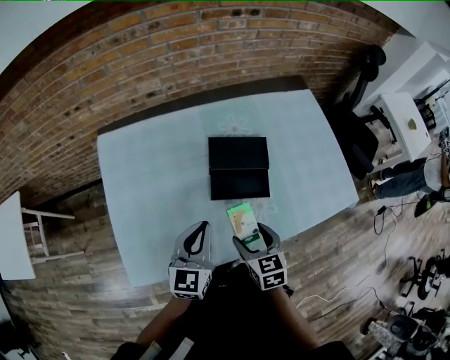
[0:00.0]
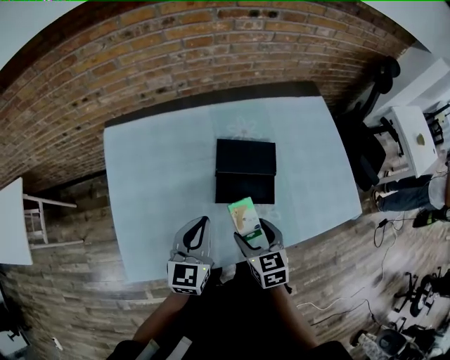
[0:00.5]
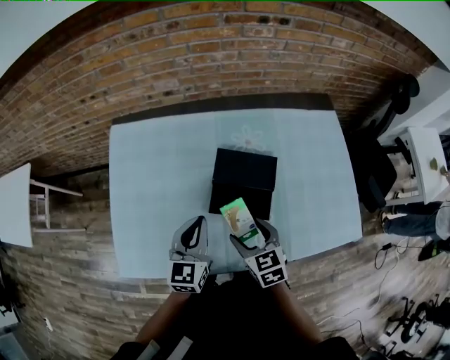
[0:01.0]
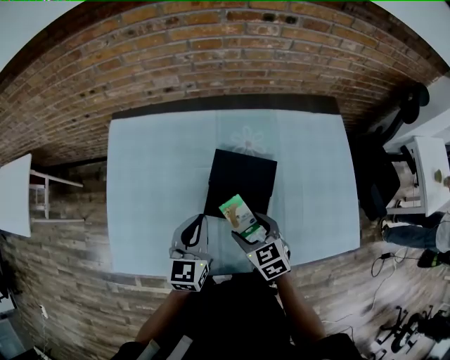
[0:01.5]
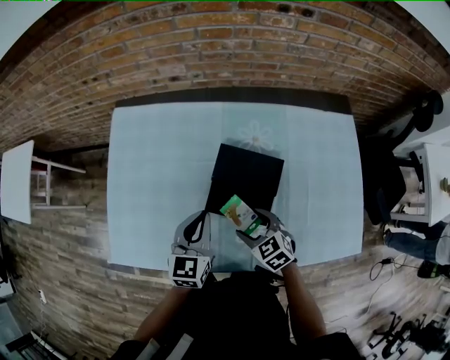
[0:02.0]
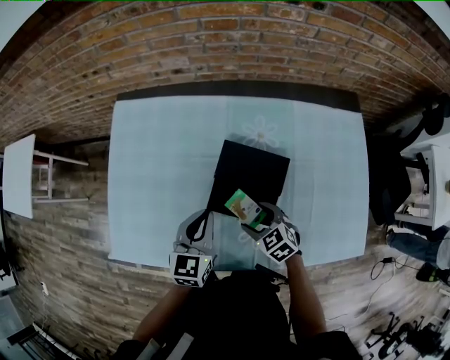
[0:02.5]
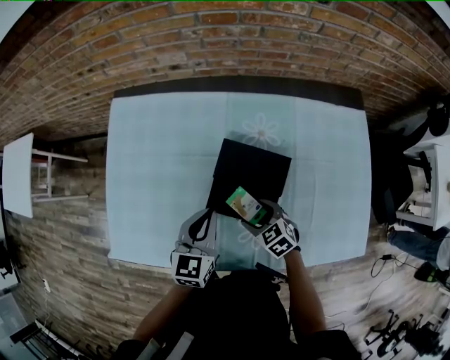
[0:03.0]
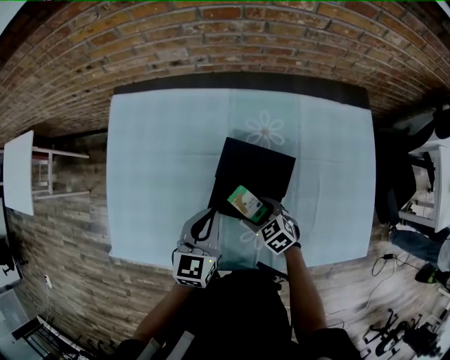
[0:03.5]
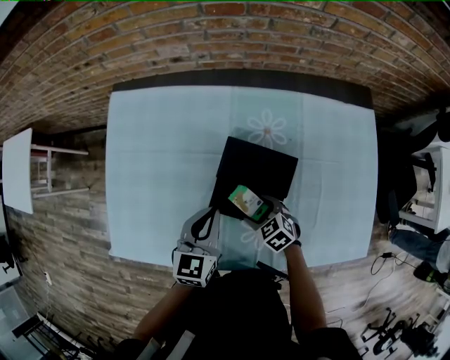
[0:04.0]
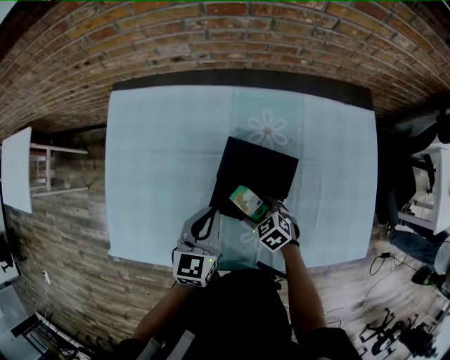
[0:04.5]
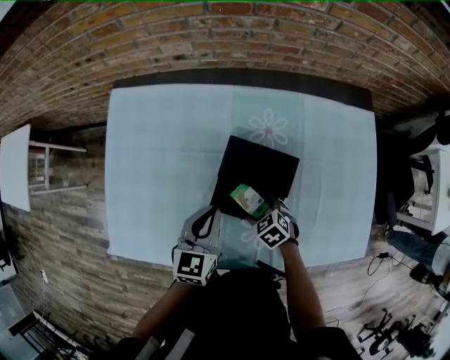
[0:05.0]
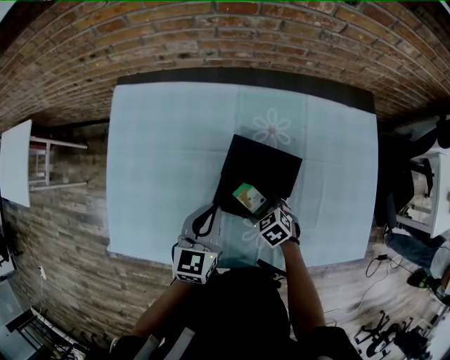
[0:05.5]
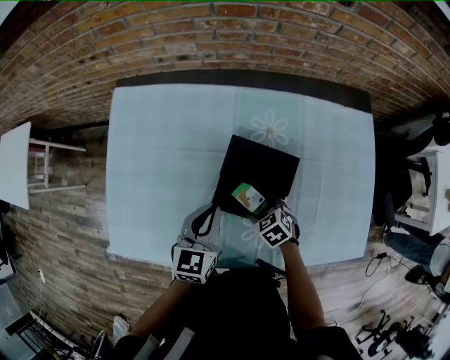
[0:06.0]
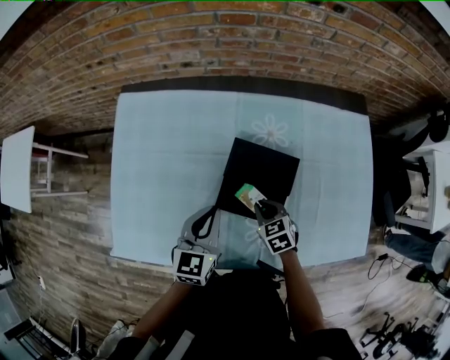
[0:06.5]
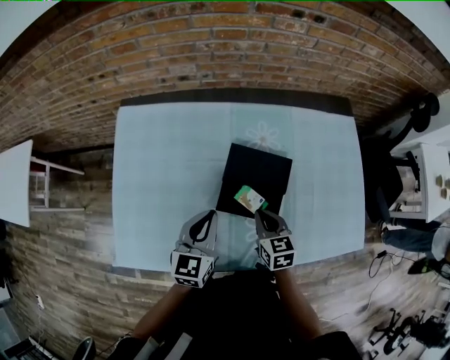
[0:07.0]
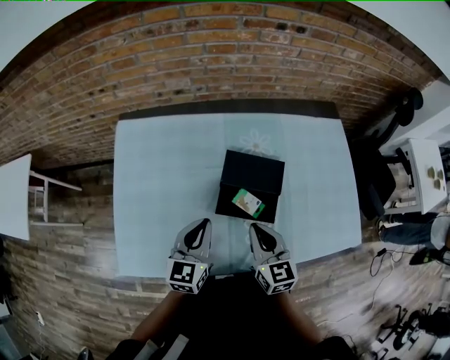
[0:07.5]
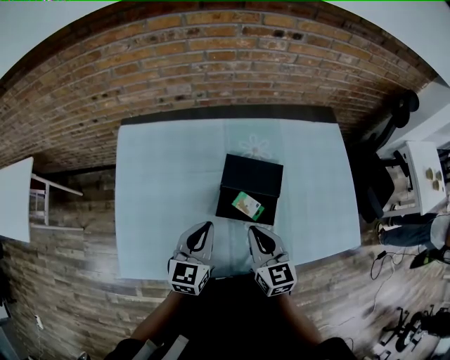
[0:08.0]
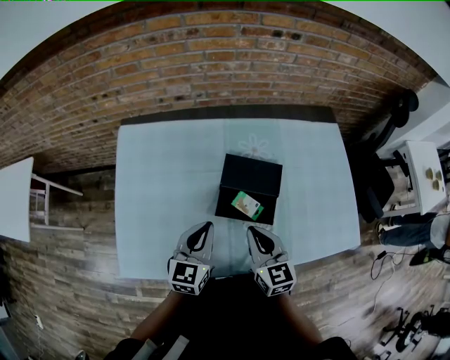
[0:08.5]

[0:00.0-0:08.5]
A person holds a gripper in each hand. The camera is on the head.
0:00.0 to 0:02.0: The left gripper ends up about 10 cm from where it was. Meanwhile the right gripper ends up some 15 cm from where it was, and rotates roughly 40 degrees.
0:02.0 to 0:04.0: The right gripper shifts about 10 cm downward.
0:04.0 to 0:06.5: The right gripper closes up.
0:06.5 to 0:08.5: The right gripper is displaced upward by approximately 20 cm, and tips its fingers upward by some 30 degrees. The left gripper moves roughly 5 cm.

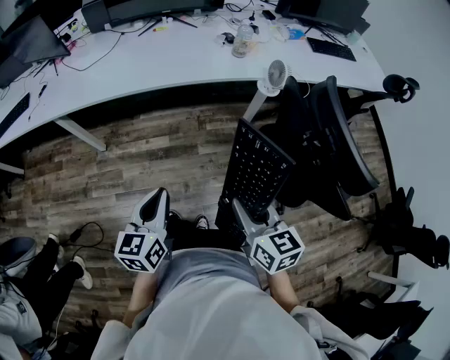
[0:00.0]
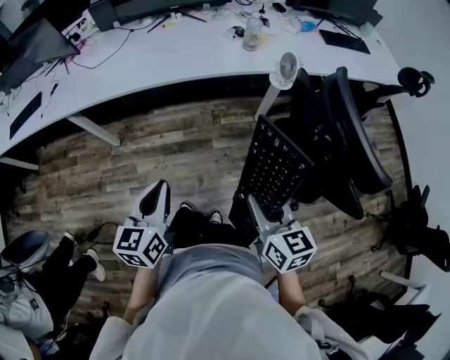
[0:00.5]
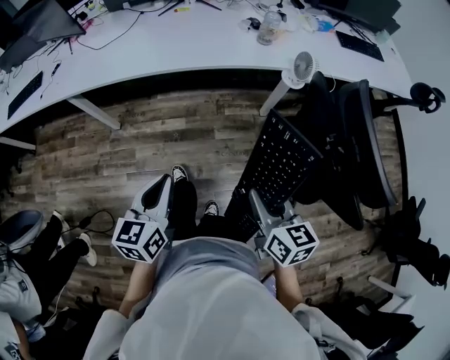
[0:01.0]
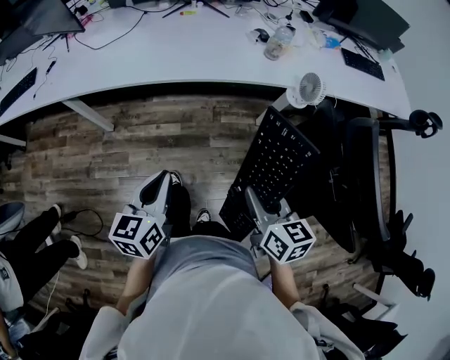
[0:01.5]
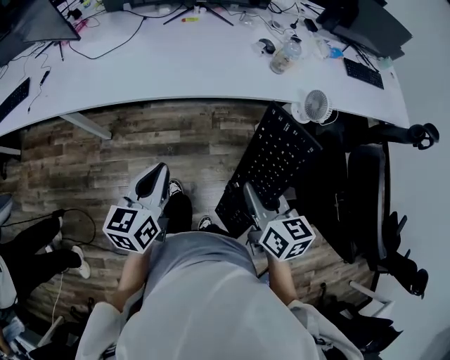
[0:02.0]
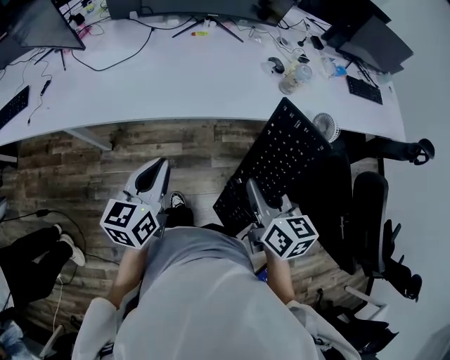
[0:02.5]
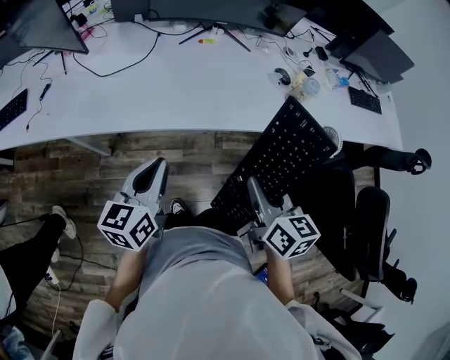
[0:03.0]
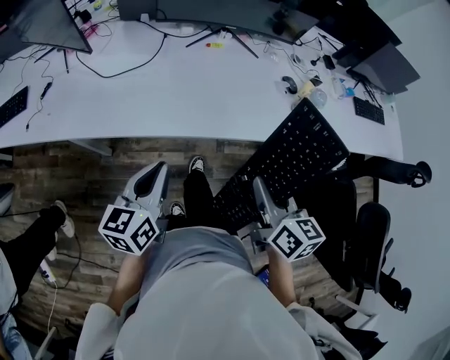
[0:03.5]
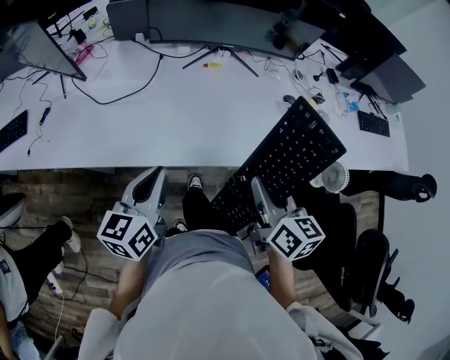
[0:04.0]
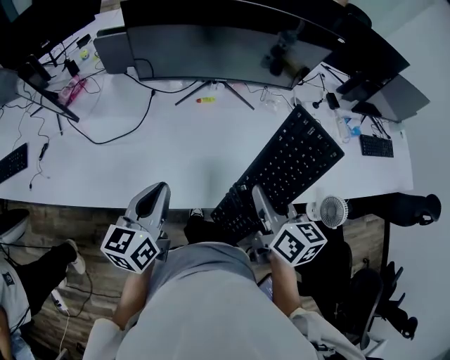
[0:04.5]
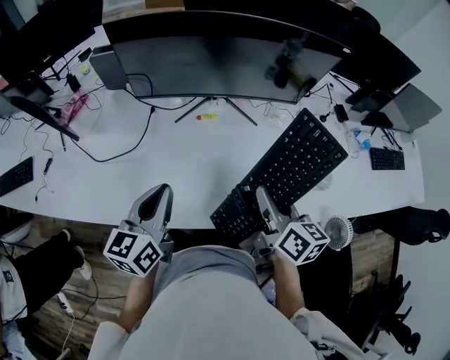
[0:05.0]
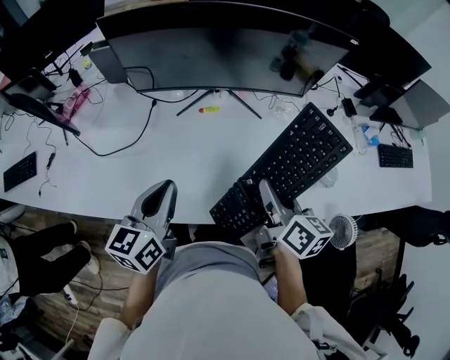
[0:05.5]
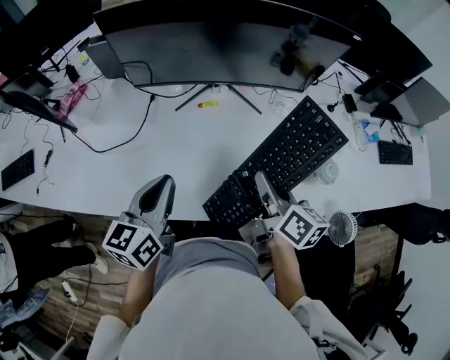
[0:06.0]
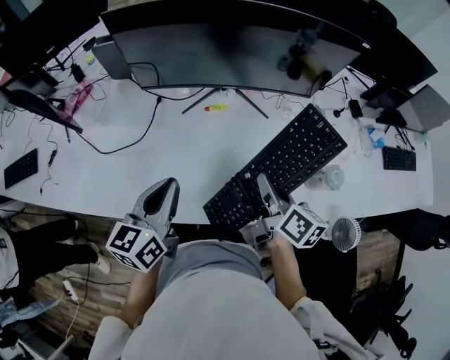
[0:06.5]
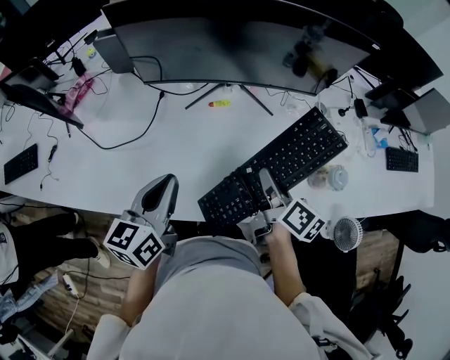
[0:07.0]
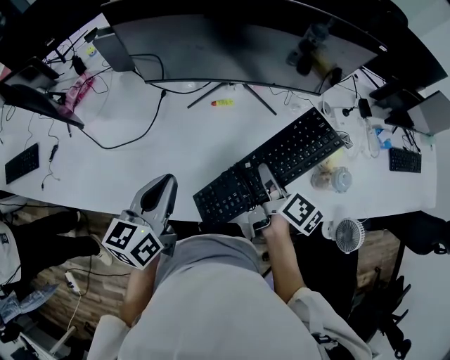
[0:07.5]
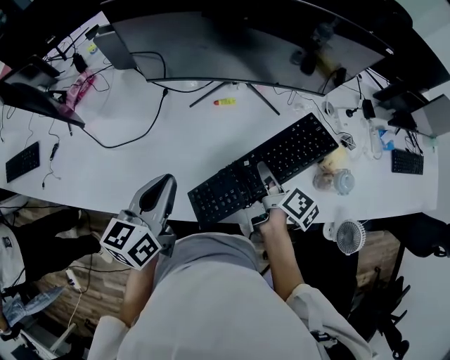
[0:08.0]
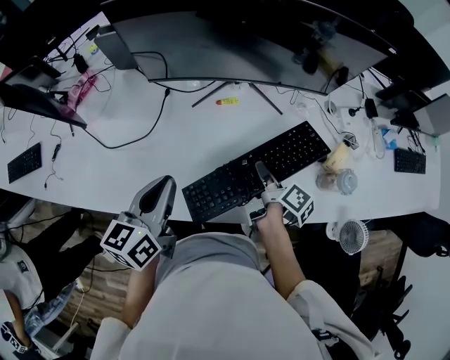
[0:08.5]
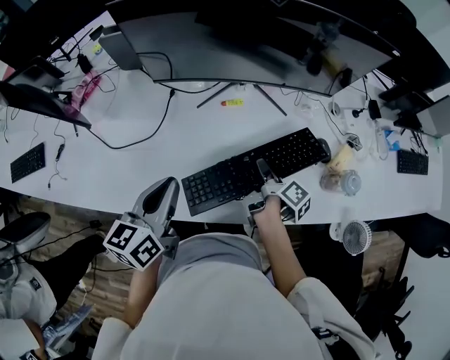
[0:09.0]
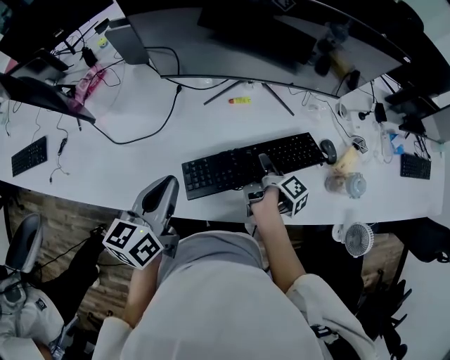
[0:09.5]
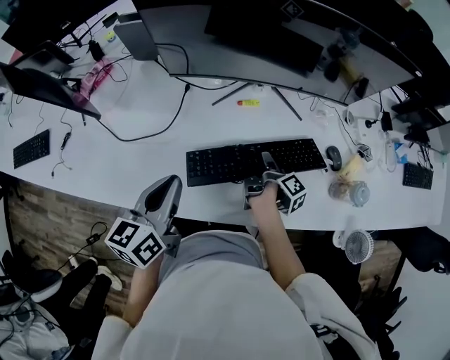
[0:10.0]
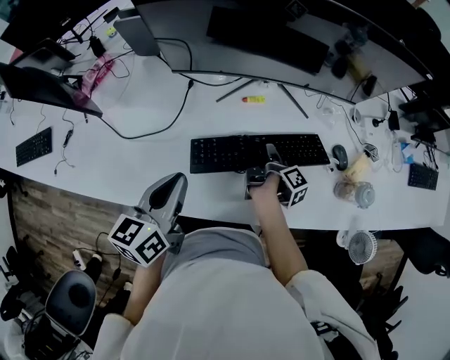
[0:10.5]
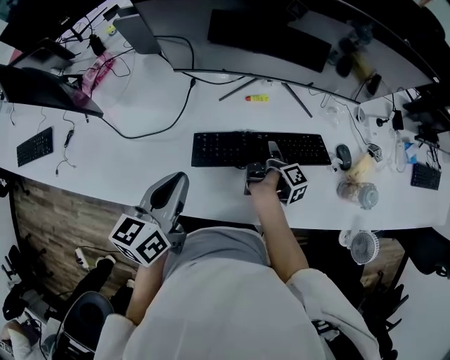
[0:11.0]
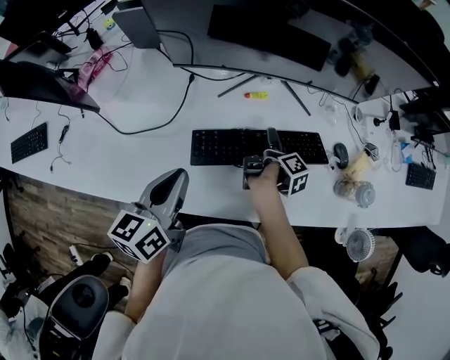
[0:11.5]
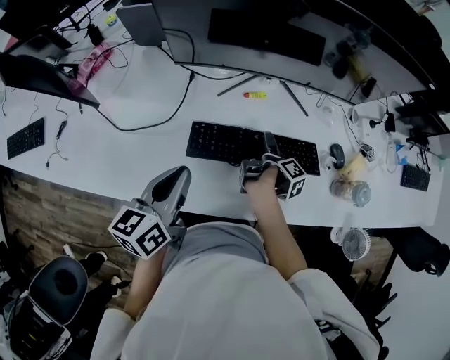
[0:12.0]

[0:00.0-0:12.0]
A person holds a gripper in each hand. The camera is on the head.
0:00.0 to 0:02.0: The right gripper is displaced forward by about 20 cm, while the left gripper goes roughly 25 cm forward and to the left.
0:02.0 to 0:04.0: The left gripper shifts roughly 25 cm forward and to the left, while the right gripper is displaced forward by approximately 30 cm.
0:04.0 to 0:06.0: The right gripper shifts roughly 20 cm forward; the left gripper heads forward and to the right, covering some 20 cm.
0:06.0 to 0:08.0: The right gripper is displaced downward and forward by some 10 cm, and swivels roughly 30 degrees.
0:08.0 to 0:10.0: The right gripper moves downward, some 10 cm, and swivels roughly 30 degrees.
0:10.0 to 0:12.0: The right gripper opens.

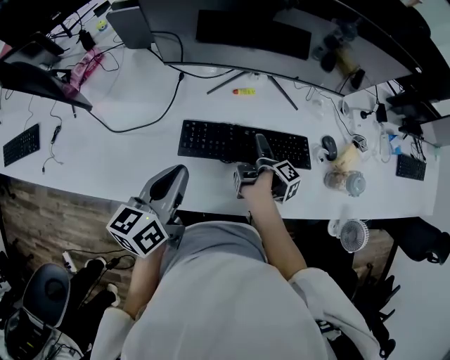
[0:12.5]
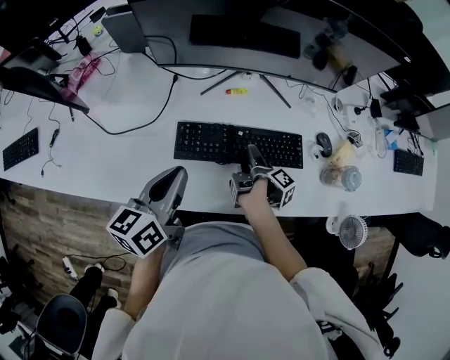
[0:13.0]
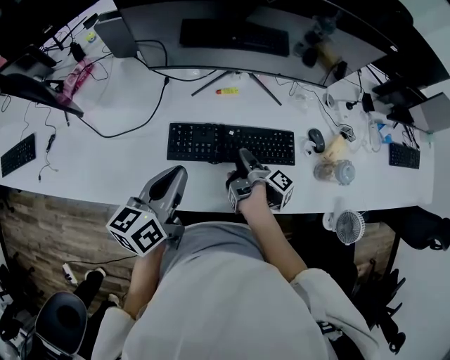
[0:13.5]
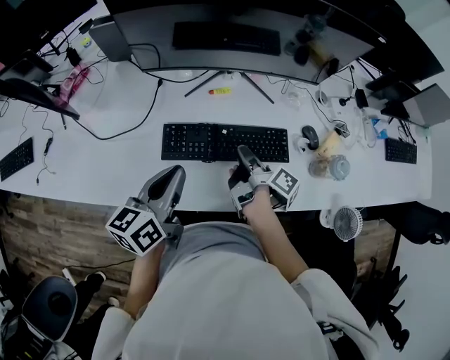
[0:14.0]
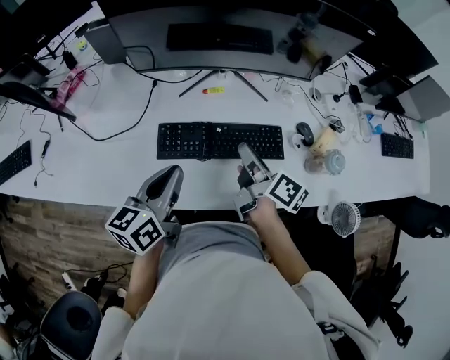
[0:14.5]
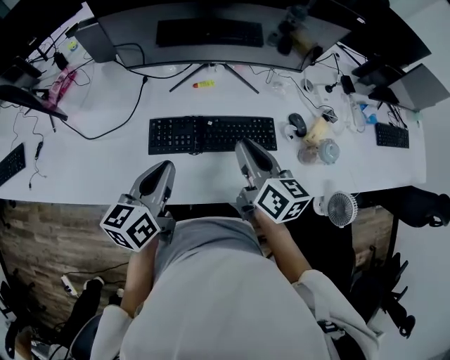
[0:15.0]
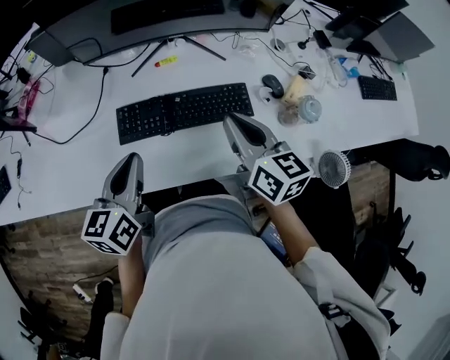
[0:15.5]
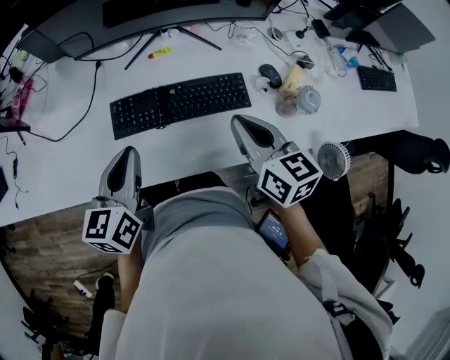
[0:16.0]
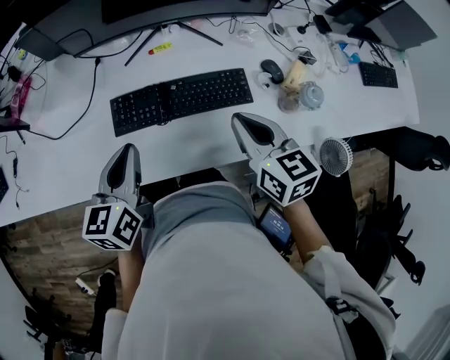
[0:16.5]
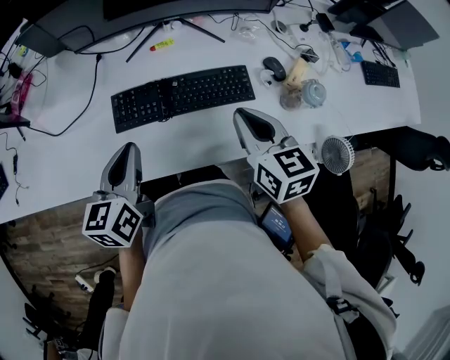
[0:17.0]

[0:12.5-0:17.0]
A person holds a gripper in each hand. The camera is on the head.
0:12.5 to 0:14.5: The right gripper shifts approximately 15 cm upward, rotates around the line of its fingers by about 50 degrees, counterclockwise from behind, and closes, while the left gripper moves to the right, roughly 5 cm.
0:14.5 to 0:17.0: The right gripper goes roughly 10 cm to the right and backward, and twists approximately 50 degrees counterclockwise, seen from behind.

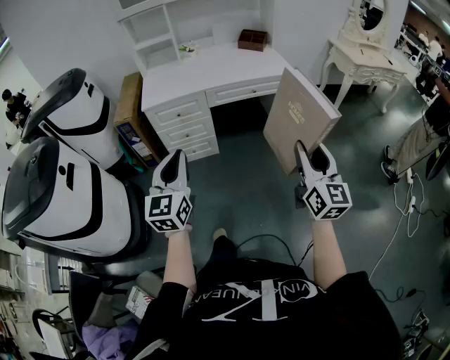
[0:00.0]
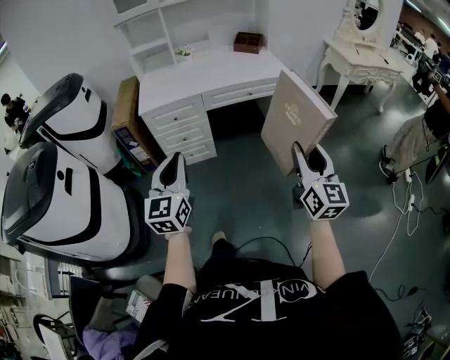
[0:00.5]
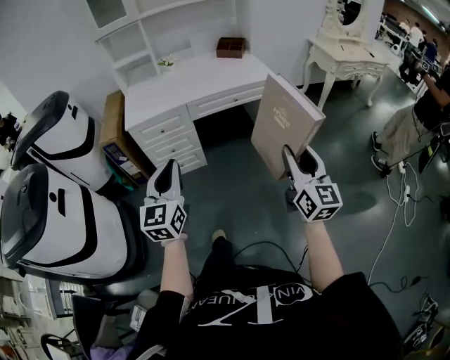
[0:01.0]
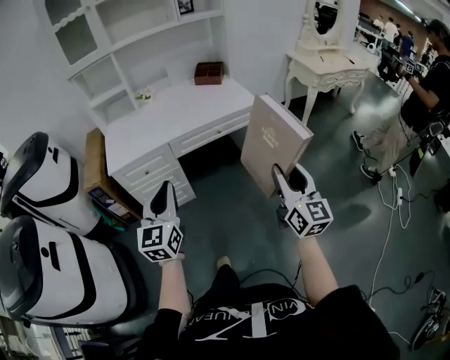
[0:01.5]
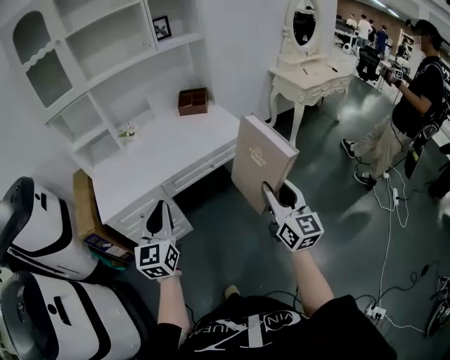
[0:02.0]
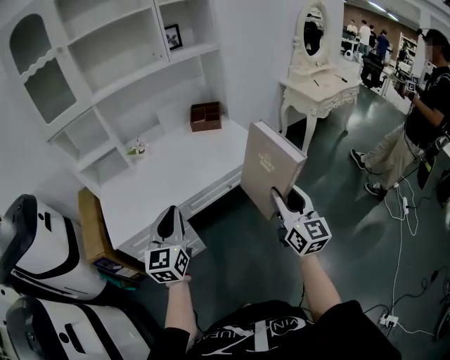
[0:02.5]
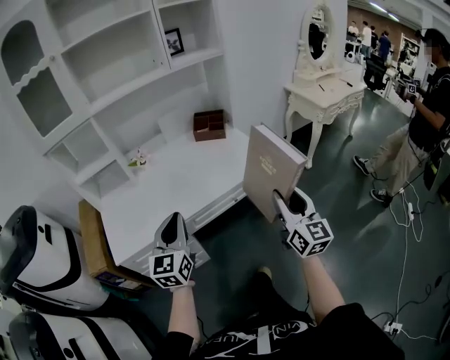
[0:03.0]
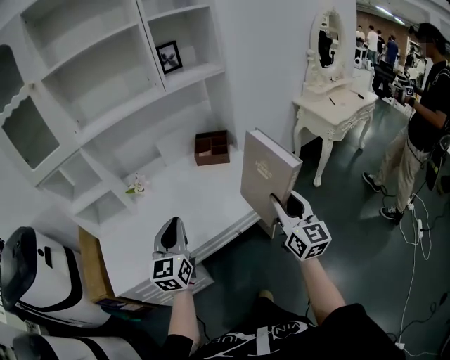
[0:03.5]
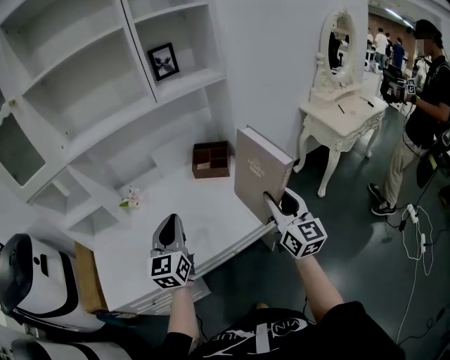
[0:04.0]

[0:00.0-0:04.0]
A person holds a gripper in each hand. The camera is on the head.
0:00.0 to 0:02.0: The two grippers go approximately 30 cm forward.
0:02.0 to 0:04.0: The pair of grippers is taken forward, approximately 50 cm.
